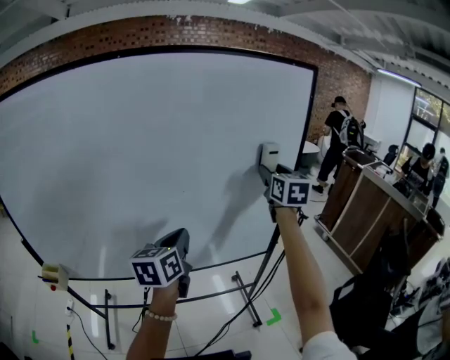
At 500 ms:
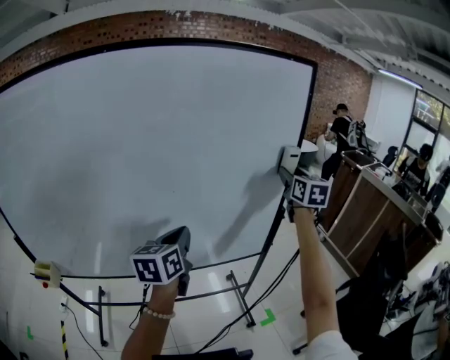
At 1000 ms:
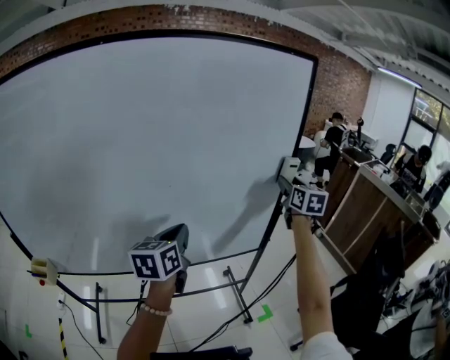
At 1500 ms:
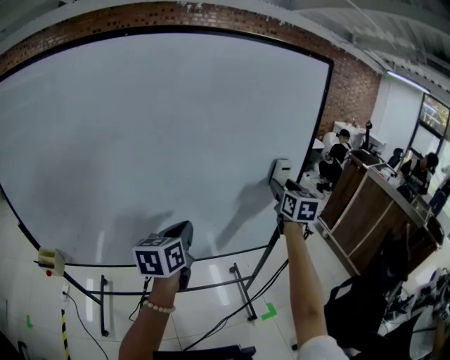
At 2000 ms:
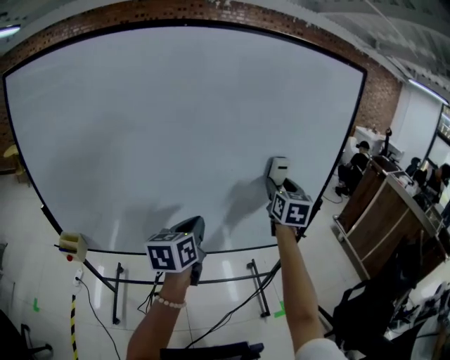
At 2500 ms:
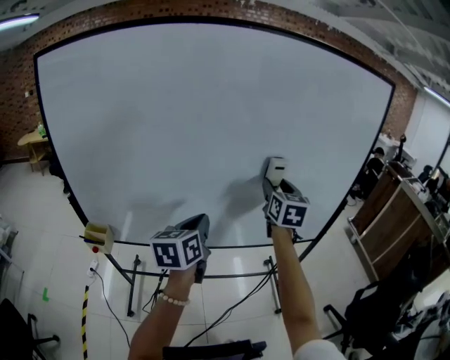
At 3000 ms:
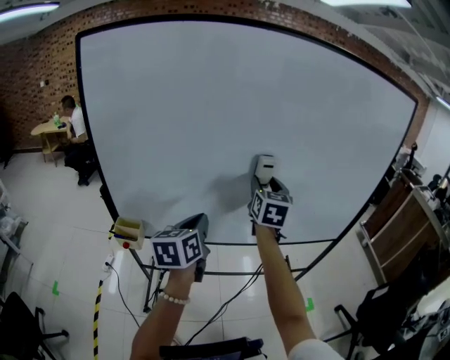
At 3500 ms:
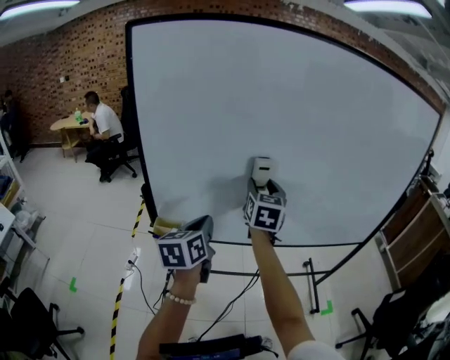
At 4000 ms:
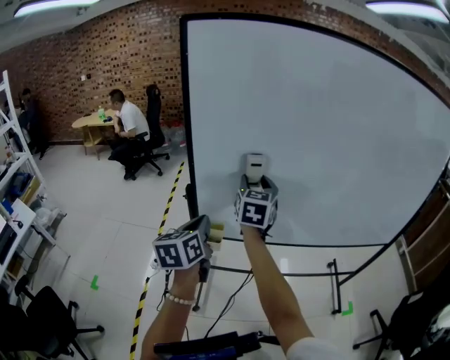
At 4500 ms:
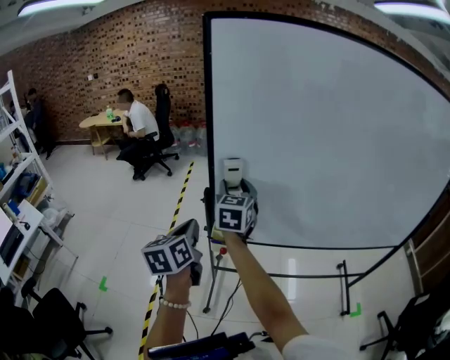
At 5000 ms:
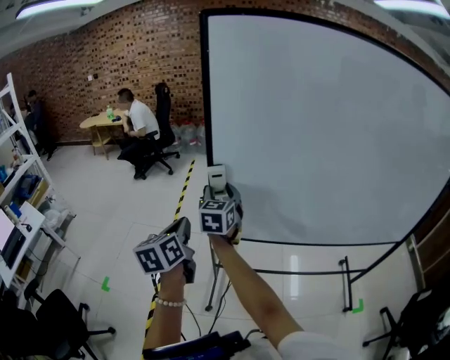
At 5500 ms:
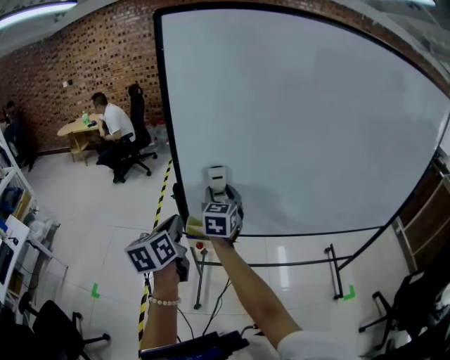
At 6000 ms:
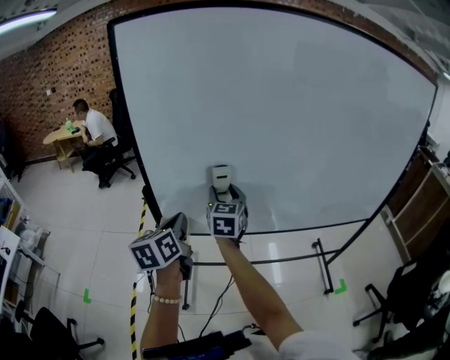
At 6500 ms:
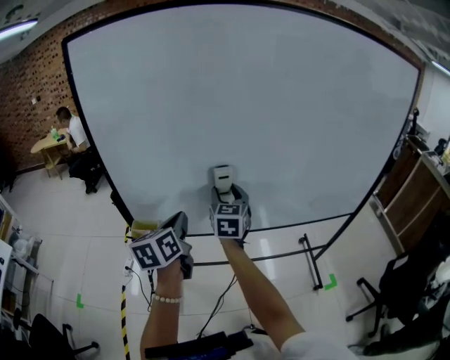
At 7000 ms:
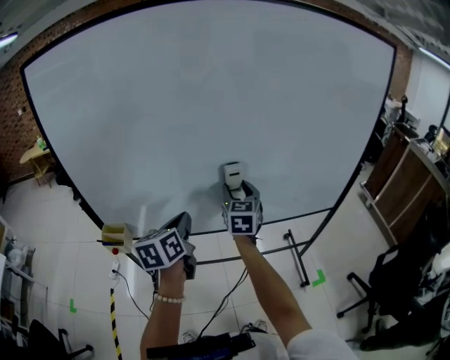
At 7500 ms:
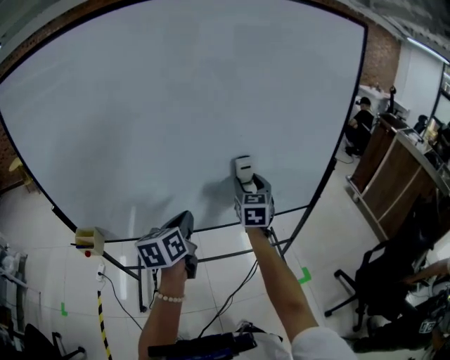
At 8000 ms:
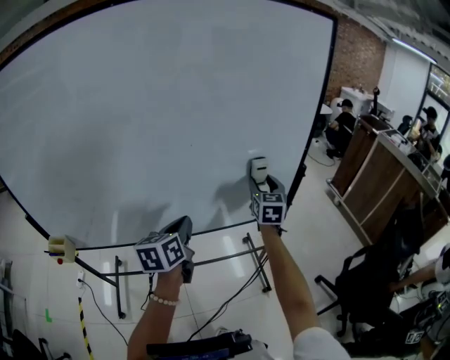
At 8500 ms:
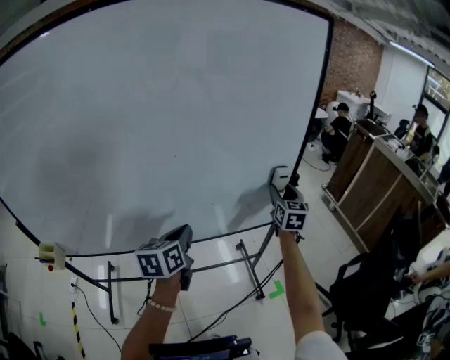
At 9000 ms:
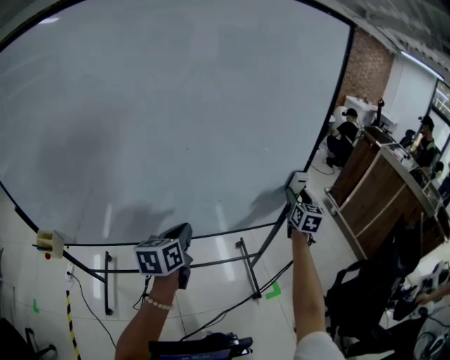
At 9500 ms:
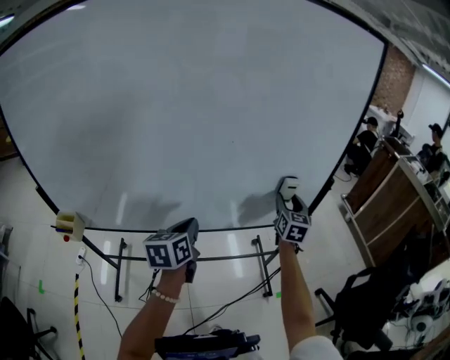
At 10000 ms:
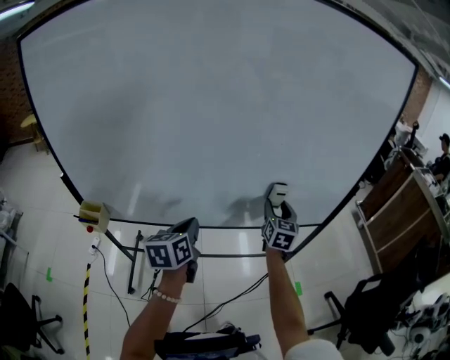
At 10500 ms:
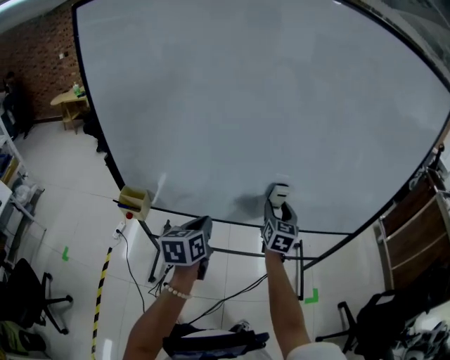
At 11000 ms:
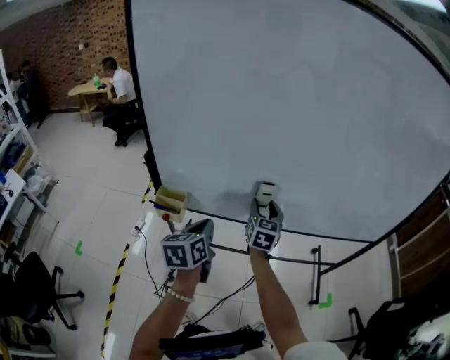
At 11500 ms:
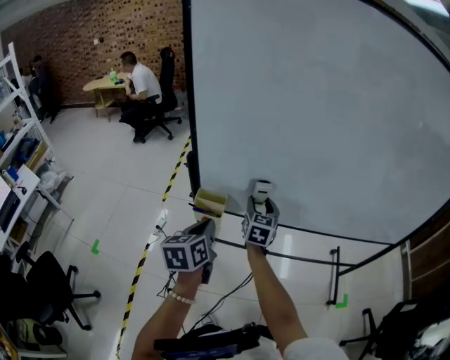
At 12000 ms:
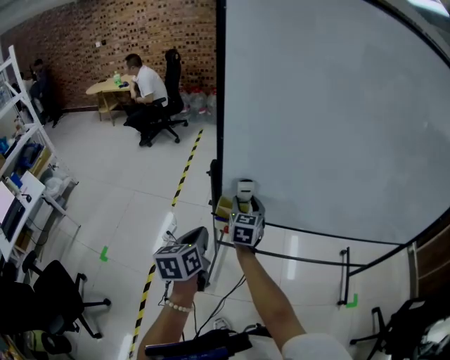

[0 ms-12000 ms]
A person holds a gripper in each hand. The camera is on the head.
0 ms to 2000 ms: The right gripper shifts roughly 15 cm to the left and downward; the left gripper heads to the left, covering some 10 cm.
2000 ms to 4000 ms: The pair of grippers is taken to the left, approximately 70 cm.
4000 ms to 6000 ms: The right gripper is displaced downward by roughly 5 cm, and reaches some 20 cm to the left, then returns, while the left gripper travels to the left and back again, roughly 15 cm each way.
6000 ms to 8000 ms: The pair of grippers is taken to the right, approximately 70 cm.
8000 ms to 10000 ms: The left gripper goes roughly 20 cm to the left; the right gripper goes approximately 20 cm to the left and downward.
10000 ms to 12000 ms: Both grippers are carried to the left, about 70 cm. The right gripper swivels about 20 degrees.

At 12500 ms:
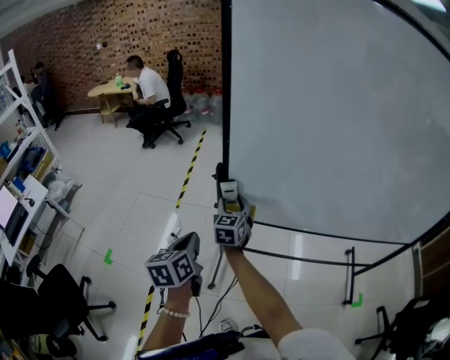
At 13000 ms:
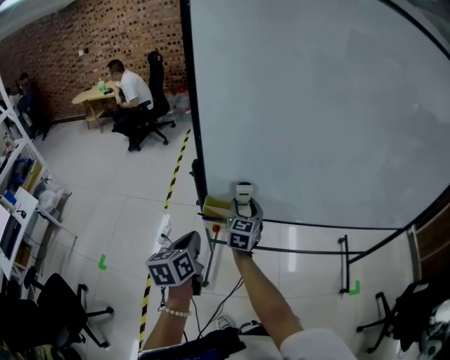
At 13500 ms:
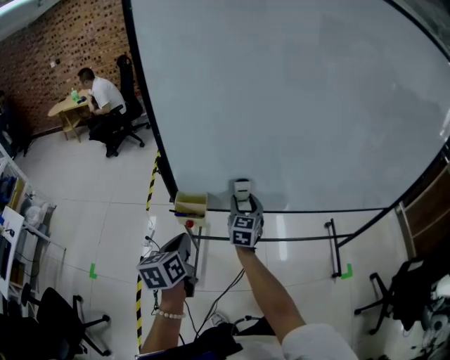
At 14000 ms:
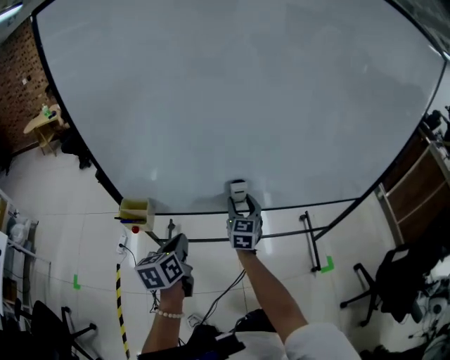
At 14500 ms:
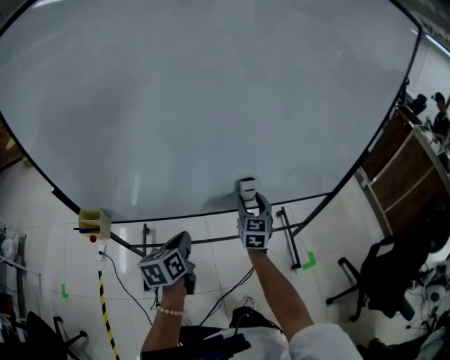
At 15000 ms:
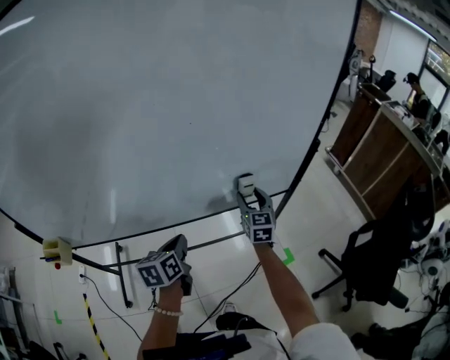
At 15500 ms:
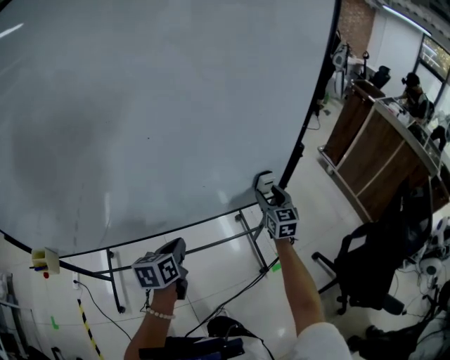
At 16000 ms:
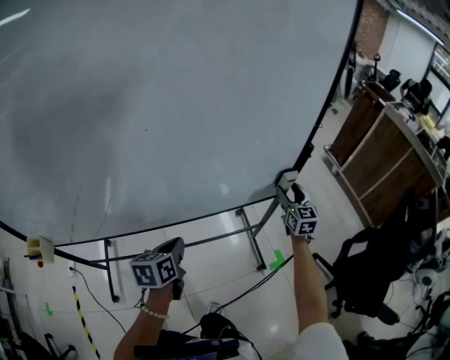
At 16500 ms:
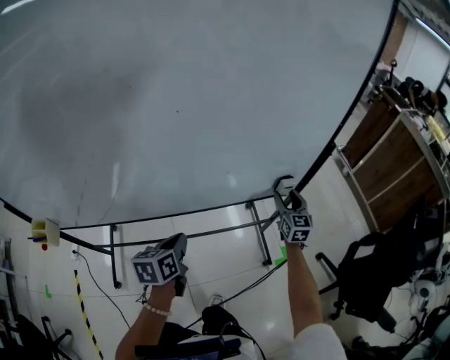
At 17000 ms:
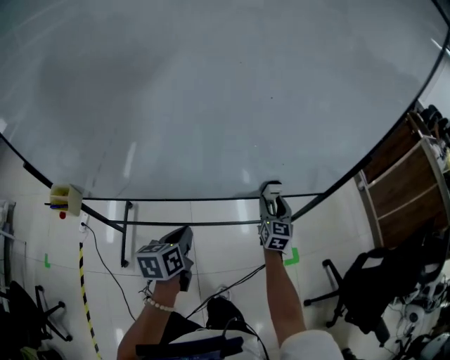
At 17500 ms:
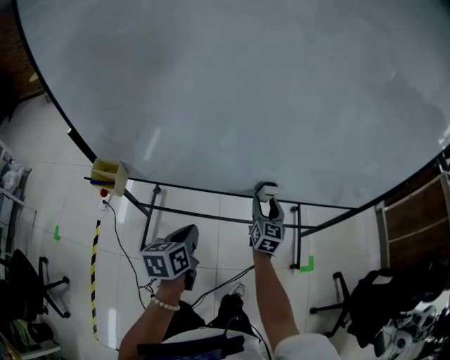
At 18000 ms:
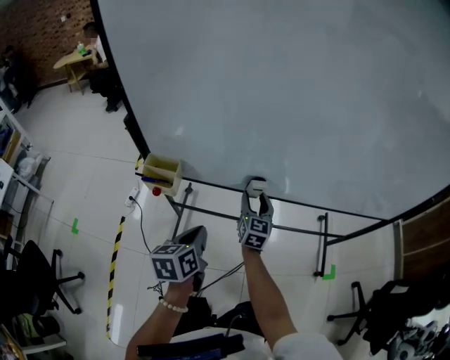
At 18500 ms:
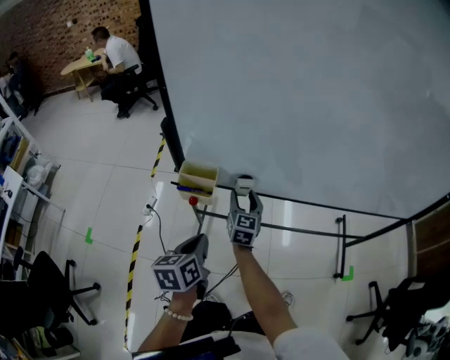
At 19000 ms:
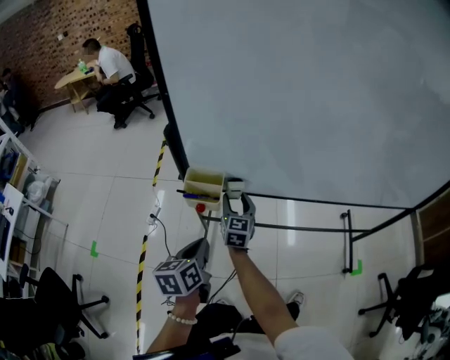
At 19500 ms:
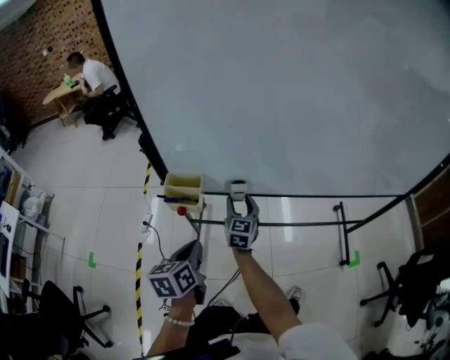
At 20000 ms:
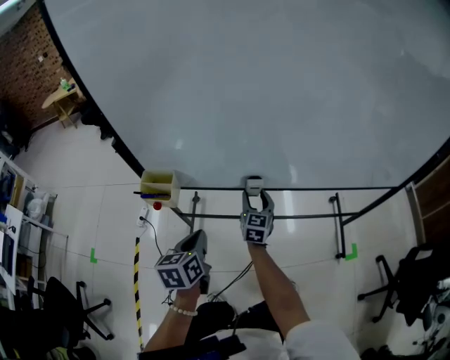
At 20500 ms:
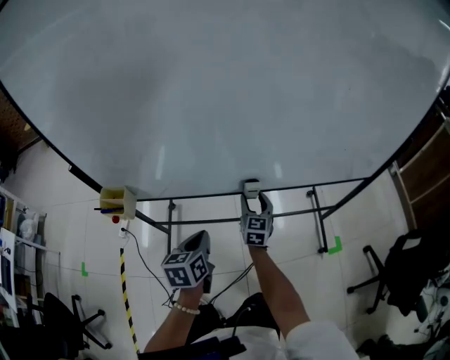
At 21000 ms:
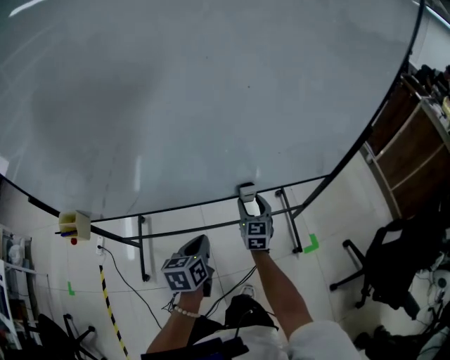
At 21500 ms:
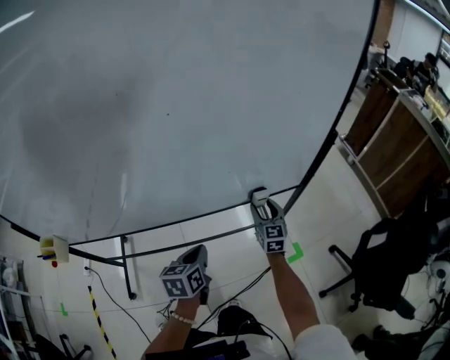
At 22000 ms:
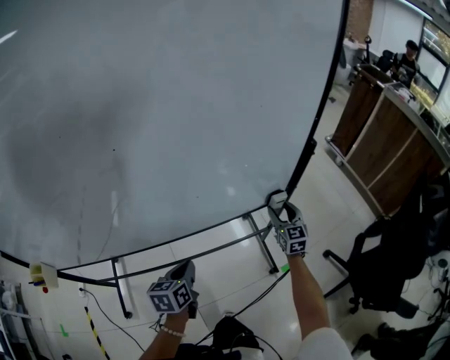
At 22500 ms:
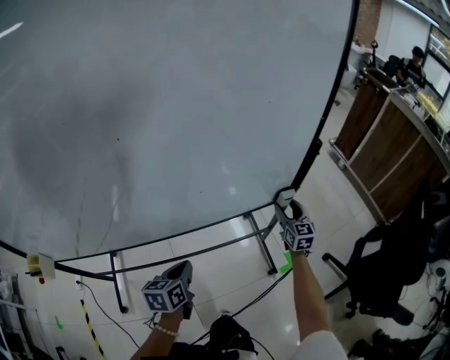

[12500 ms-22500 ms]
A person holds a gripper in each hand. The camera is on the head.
12500 ms to 14500 ms: The two grippers travel together, to the right, roughly 70 cm. The left gripper changes its angle by roughly 20 degrees. The right gripper swivels about 20 degrees.
14500 ms to 16500 ms: The right gripper heads to the right, covering approximately 40 cm. Meanwhile the left gripper heads to the right and forward, covering roughly 25 cm.
16500 ms to 18500 ms: The pair of grippers is taken to the left, some 80 cm. The left gripper swivels about 20 degrees.
18500 ms to 20500 ms: Both grippers move to the right, some 35 cm.
20500 ms to 22500 ms: The right gripper moves to the right, roughly 60 cm. Meanwhile the left gripper moves to the right and forward, approximately 40 cm.

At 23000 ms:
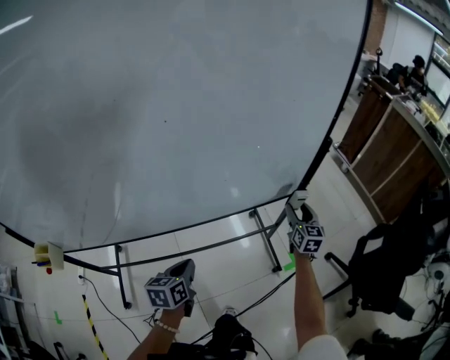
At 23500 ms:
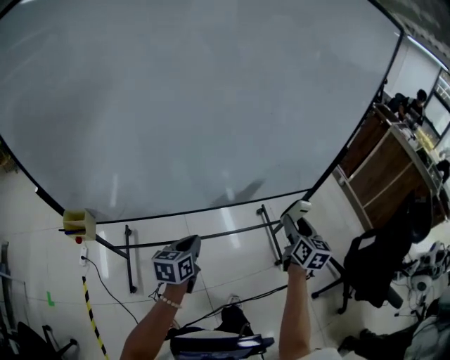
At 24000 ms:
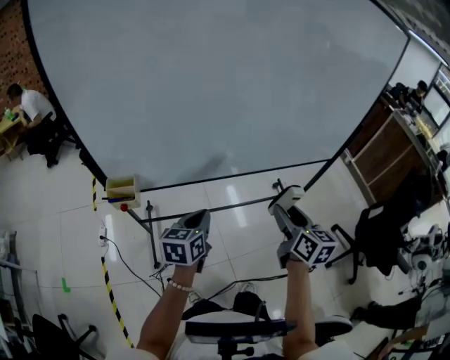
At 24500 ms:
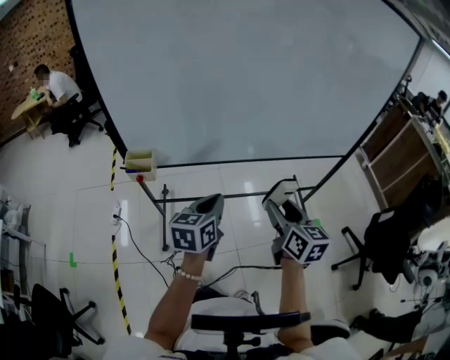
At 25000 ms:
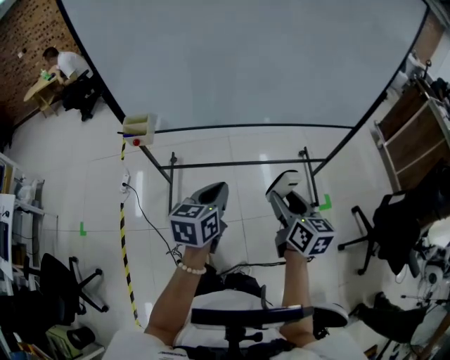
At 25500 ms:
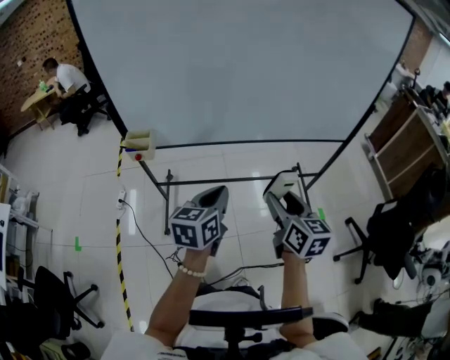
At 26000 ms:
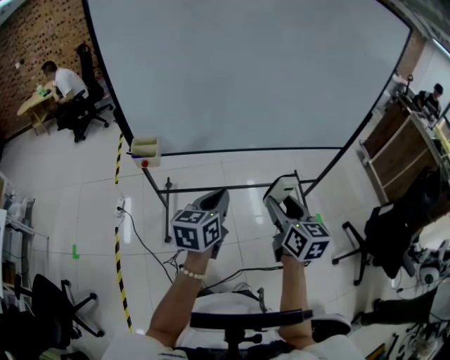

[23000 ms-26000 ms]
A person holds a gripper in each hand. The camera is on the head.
23000 ms to 24500 ms: The pair of grippers is taken to the left and backward, some 60 cm. The two grippers go roughly 20 cm upward. The right gripper turns by roughly 30 degrees.
24500 ms to 26000 ms: The grippers both shift backward by roughly 5 cm.

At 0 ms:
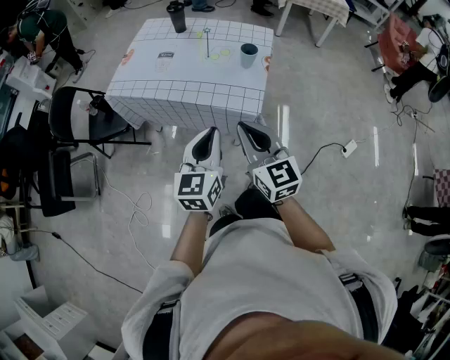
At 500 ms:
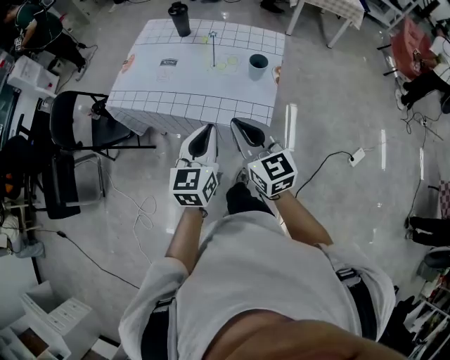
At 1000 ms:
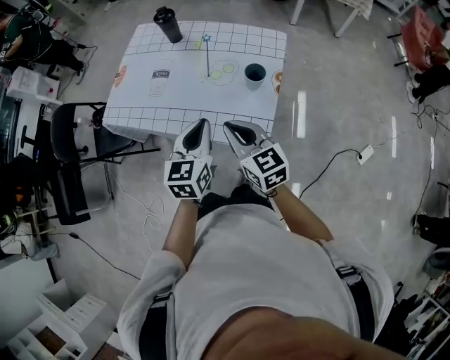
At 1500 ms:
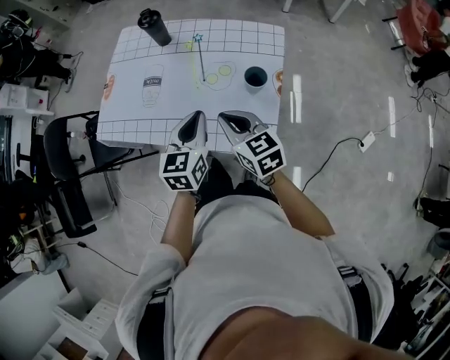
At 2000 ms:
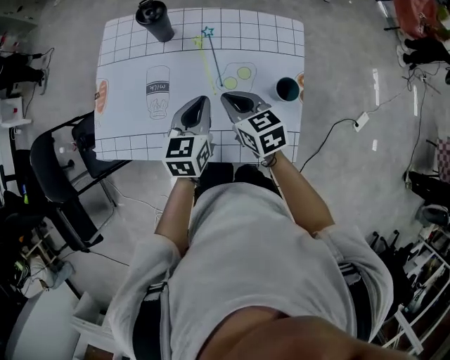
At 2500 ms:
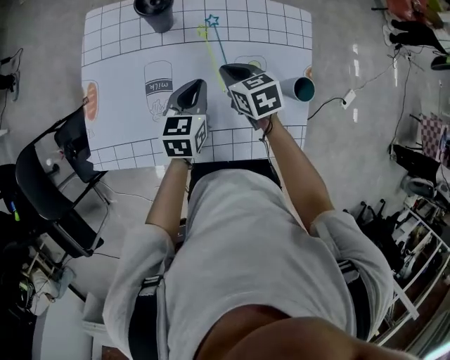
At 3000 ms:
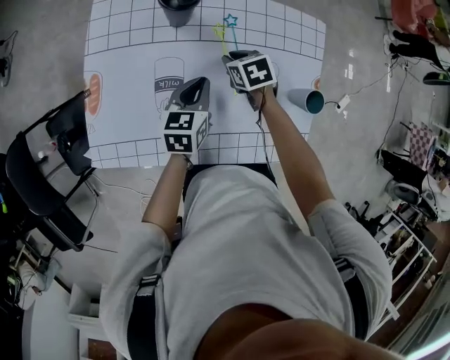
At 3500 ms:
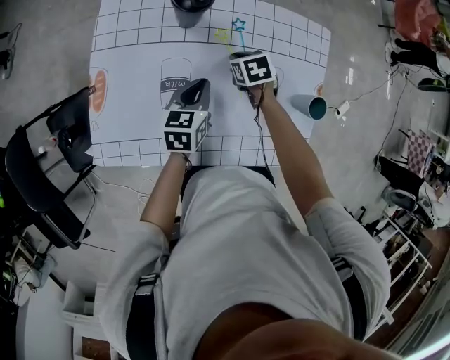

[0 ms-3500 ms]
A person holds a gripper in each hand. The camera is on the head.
0 ms to 2000 ms: The two grippers travel together, forward, roughly 50 cm. The left gripper swivels some 20 degrees; the right gripper rotates approximately 30 degrees.
2000 ms to 3500 ms: The right gripper shifts about 25 cm forward and downward, and angles its fingers downward, by approximately 30 degrees. The left gripper heads downward, forward and to the left, covering roughly 20 cm.
